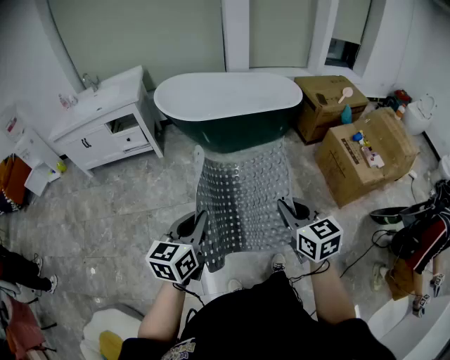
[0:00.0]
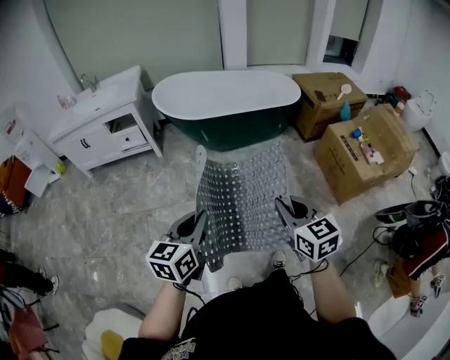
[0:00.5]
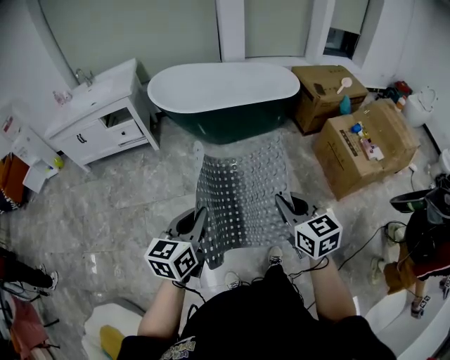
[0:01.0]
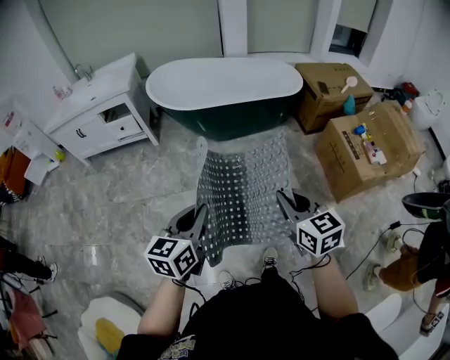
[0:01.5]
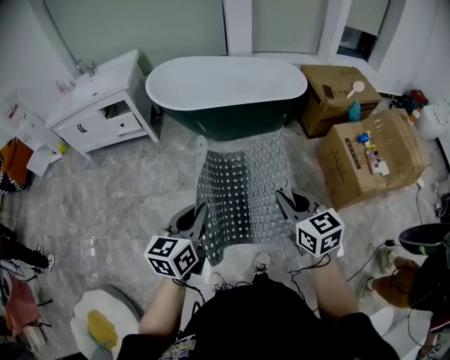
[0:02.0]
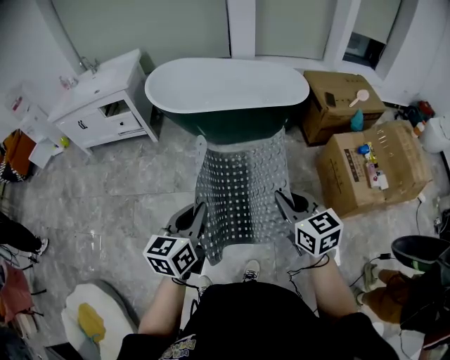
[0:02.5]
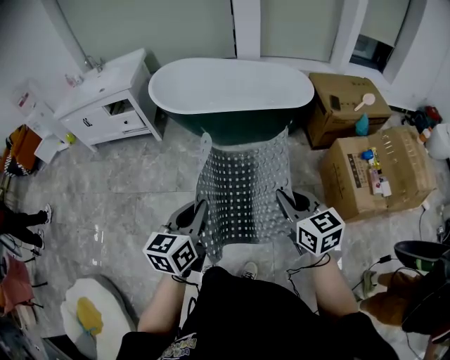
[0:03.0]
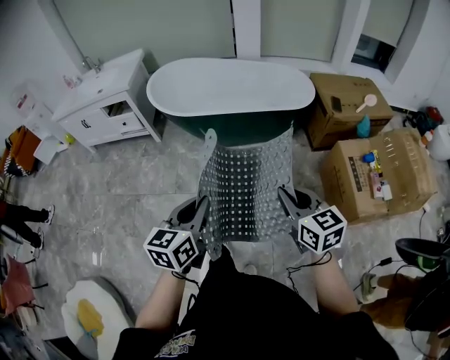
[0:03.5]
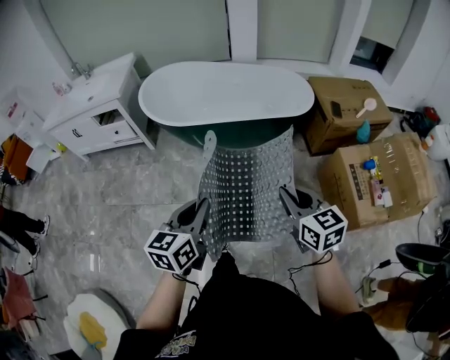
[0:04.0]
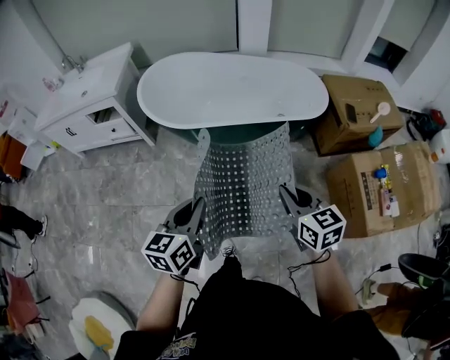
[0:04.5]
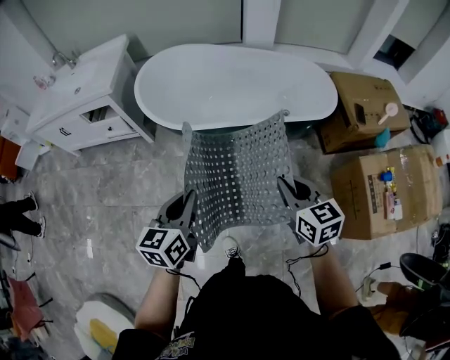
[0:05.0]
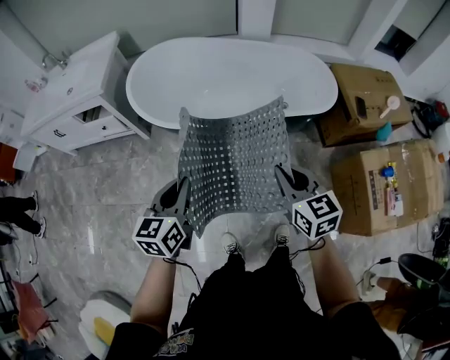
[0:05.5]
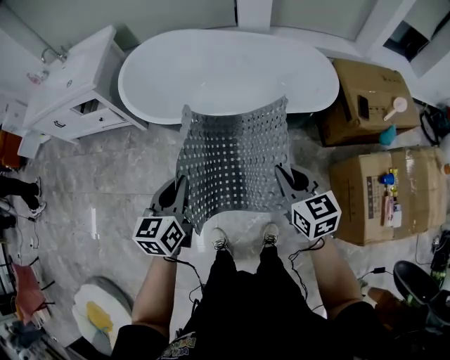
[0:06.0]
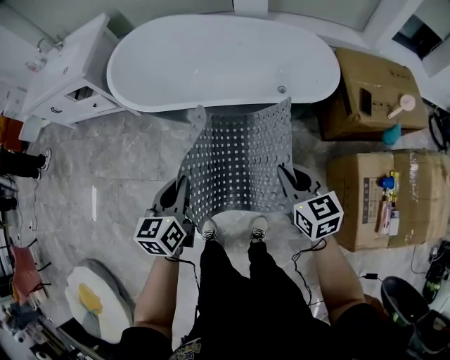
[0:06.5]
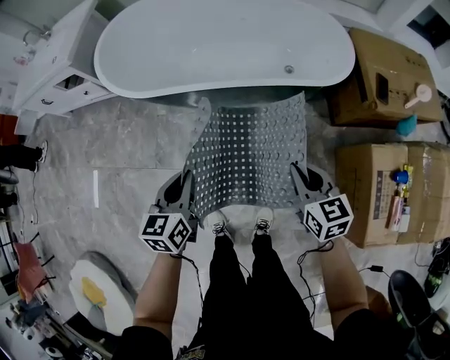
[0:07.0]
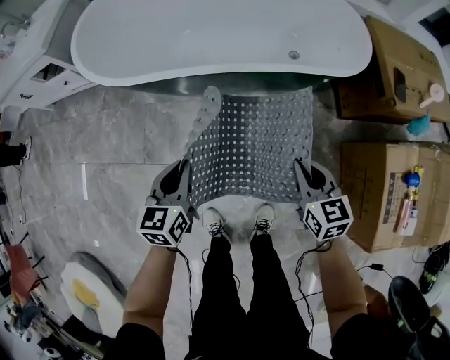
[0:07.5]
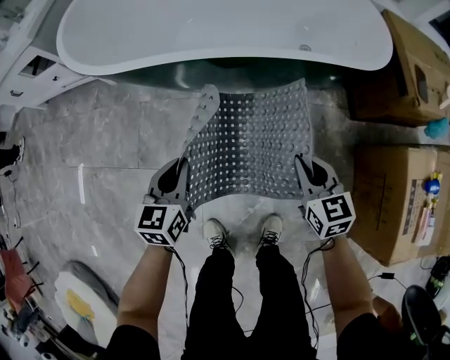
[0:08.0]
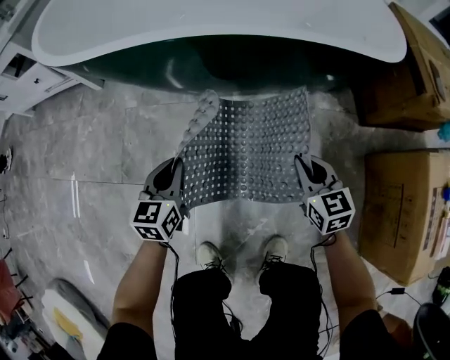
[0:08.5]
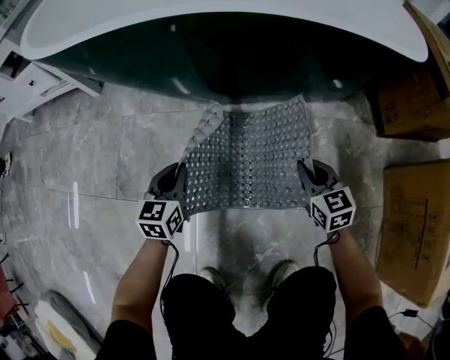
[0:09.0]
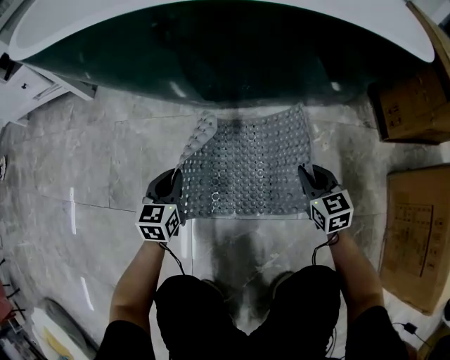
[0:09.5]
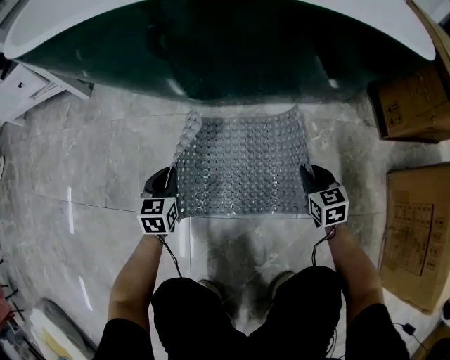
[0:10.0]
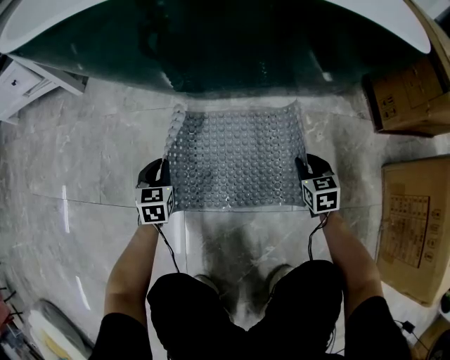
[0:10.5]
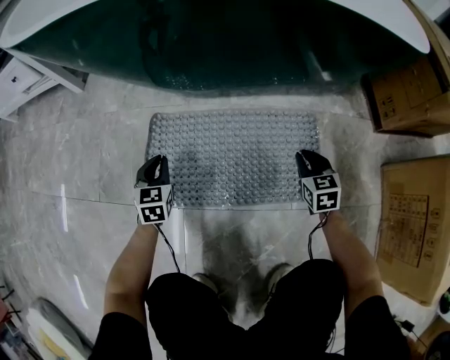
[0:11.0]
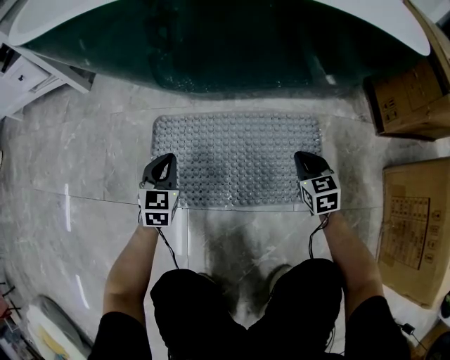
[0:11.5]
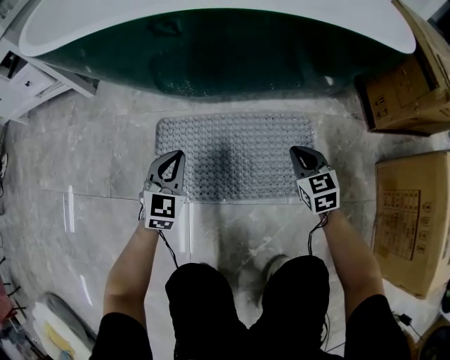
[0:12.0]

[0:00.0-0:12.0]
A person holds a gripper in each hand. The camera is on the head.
0:00.0 to 0:02.0: Both grippers move to the right and forward, about 15 cm.
0:02.0 to 0:04.0: Both grippers move forward and to the right, some 20 cm.
0:04.0 to 0:06.0: Both grippers travel together forward, some 30 cm.
0:06.0 to 0:08.0: The grippers both shift downward by approximately 40 cm.
0:08.0 to 0:10.0: Both grippers move downward, about 40 cm.
0:10.0 to 0:12.0: The left gripper moves upward and to the right, roughly 15 cm, and changes its angle by approximately 30 degrees. Meanwhile the right gripper goes roughly 10 cm upward.

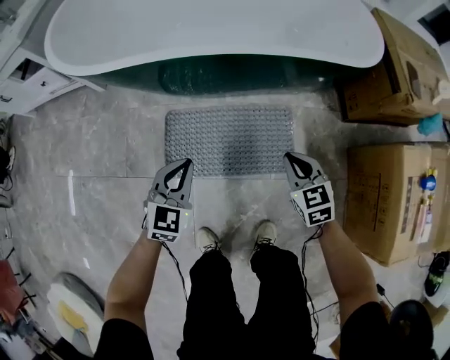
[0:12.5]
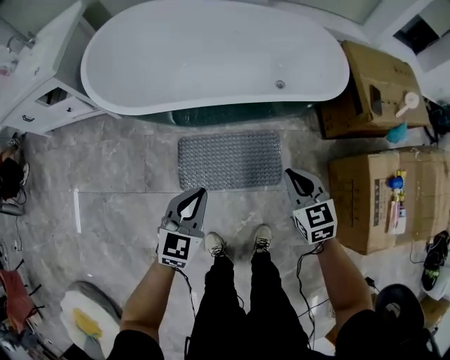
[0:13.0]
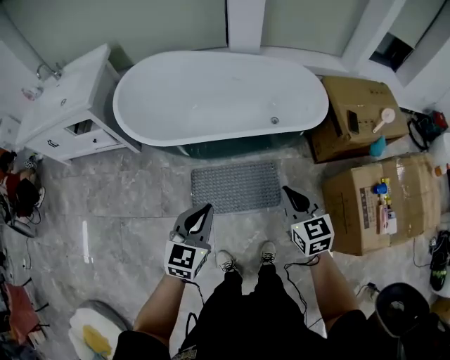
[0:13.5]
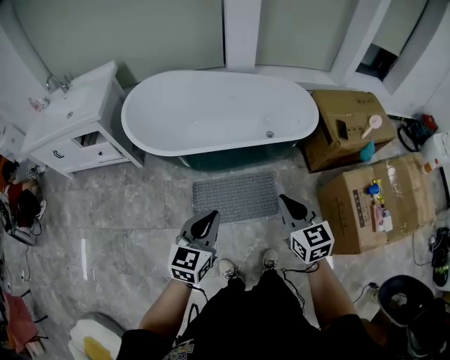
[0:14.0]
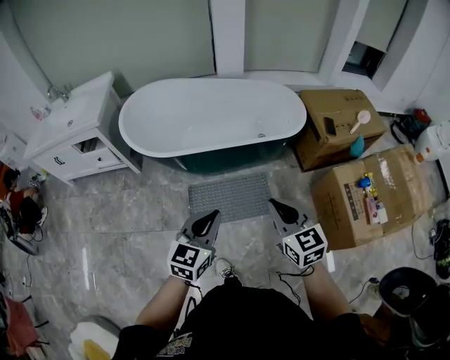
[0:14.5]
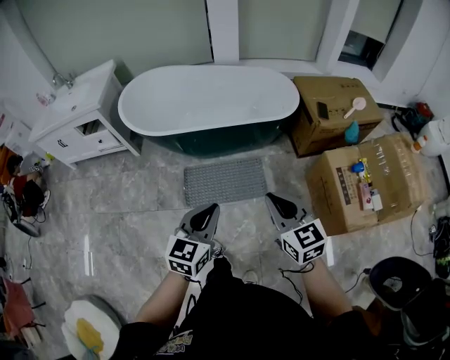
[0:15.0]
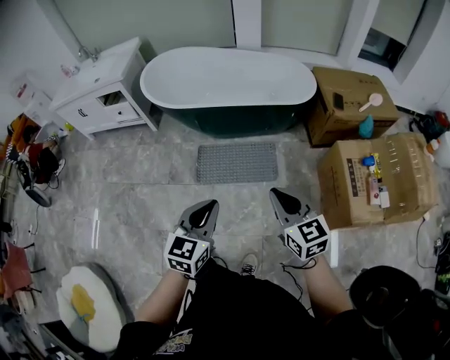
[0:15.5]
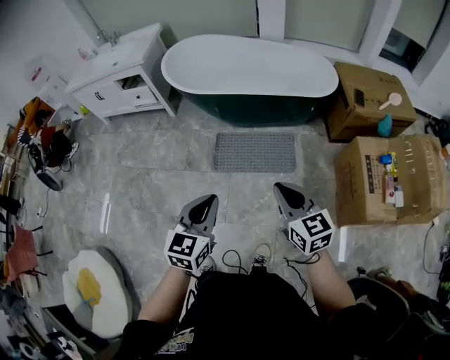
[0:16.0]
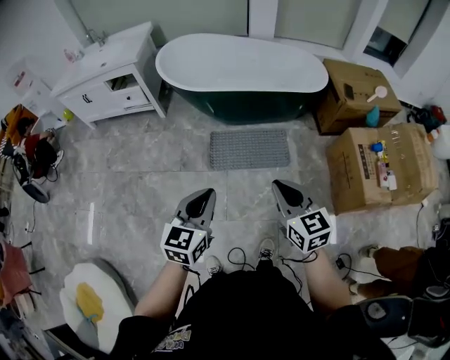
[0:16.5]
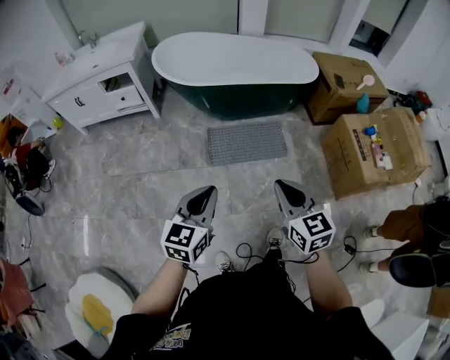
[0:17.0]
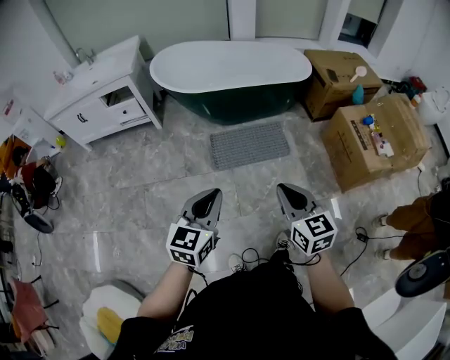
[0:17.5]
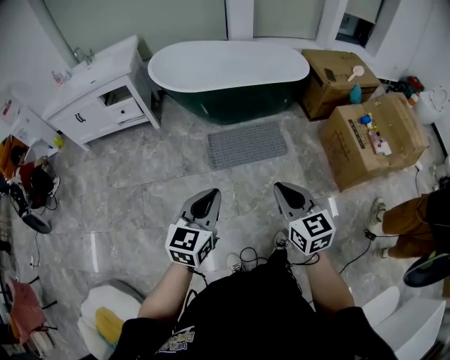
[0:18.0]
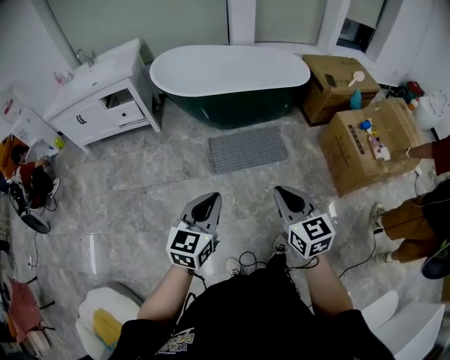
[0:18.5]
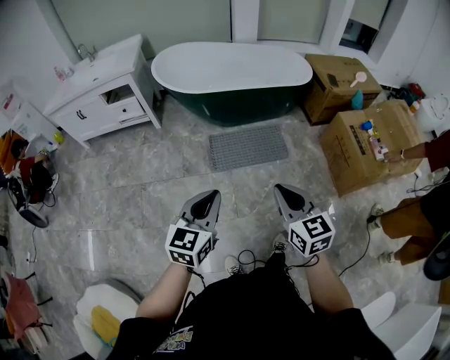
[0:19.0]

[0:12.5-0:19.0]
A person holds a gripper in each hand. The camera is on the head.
0:12.5 to 0:14.5: The two grippers go some 60 cm upward and backward. The right gripper turns by approximately 20 degrees, while the left gripper changes its angle by some 20 degrees.
0:14.5 to 0:17.0: The grippers both shift backward and to the left by some 35 cm.
0:17.0 to 0:19.0: There are only small adjustments of the grippers.

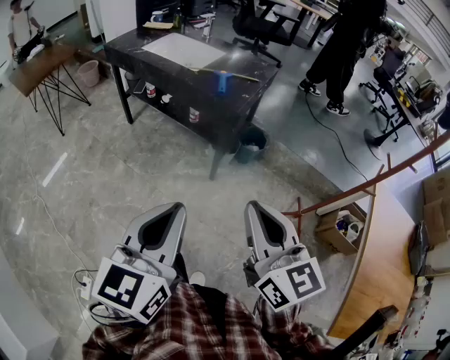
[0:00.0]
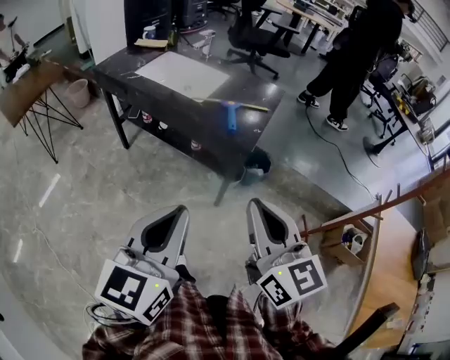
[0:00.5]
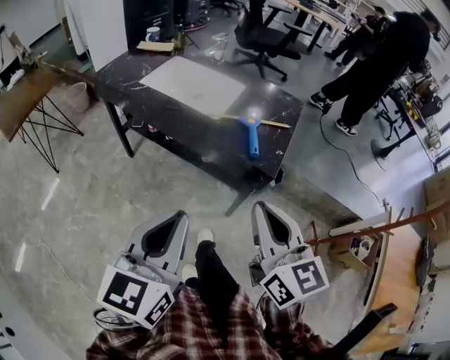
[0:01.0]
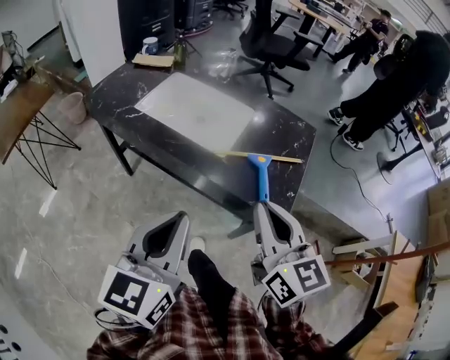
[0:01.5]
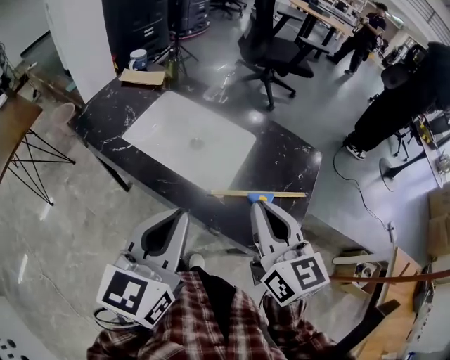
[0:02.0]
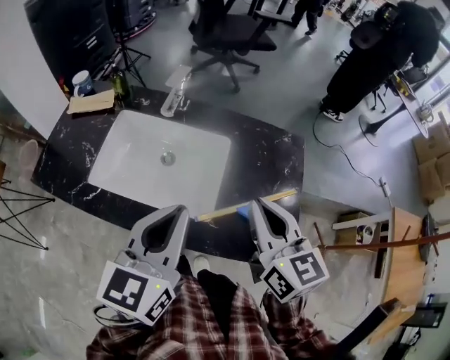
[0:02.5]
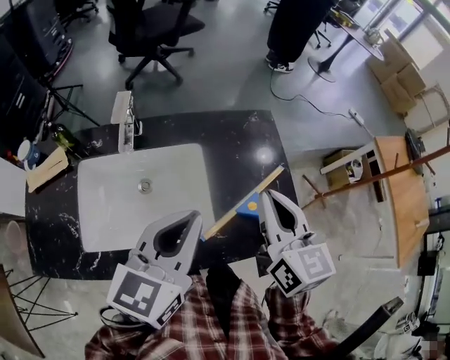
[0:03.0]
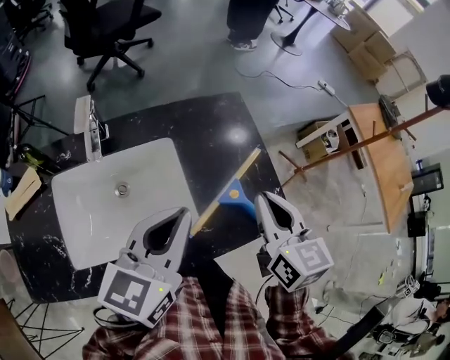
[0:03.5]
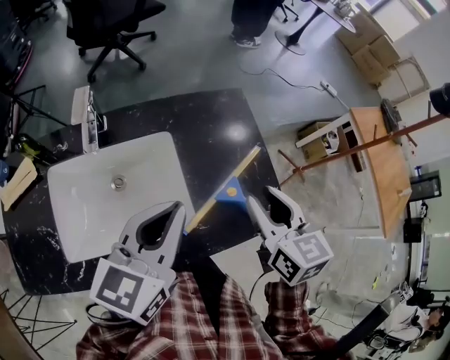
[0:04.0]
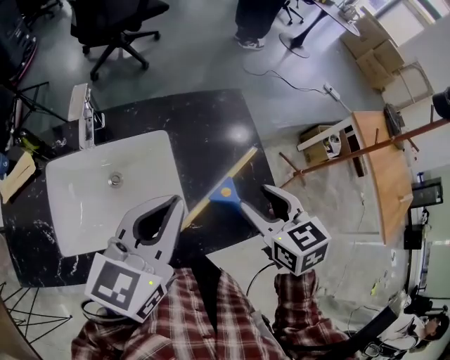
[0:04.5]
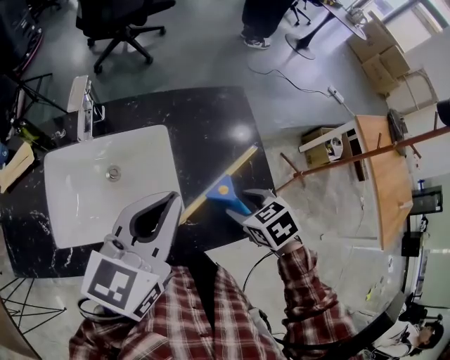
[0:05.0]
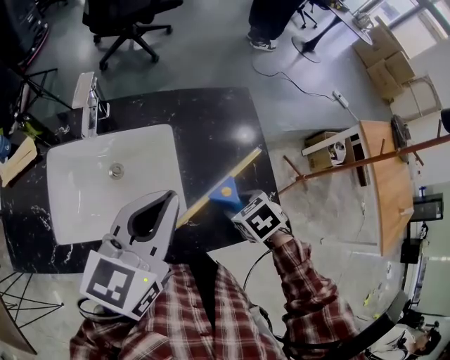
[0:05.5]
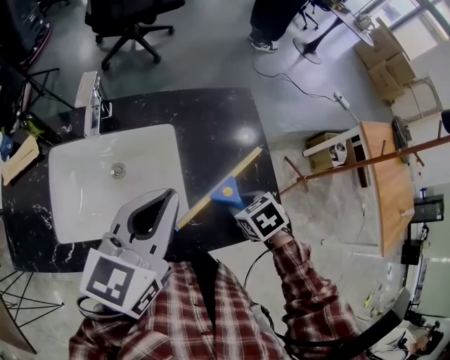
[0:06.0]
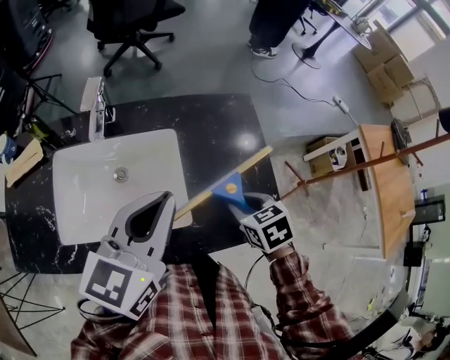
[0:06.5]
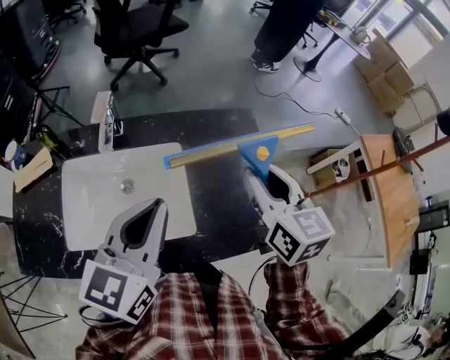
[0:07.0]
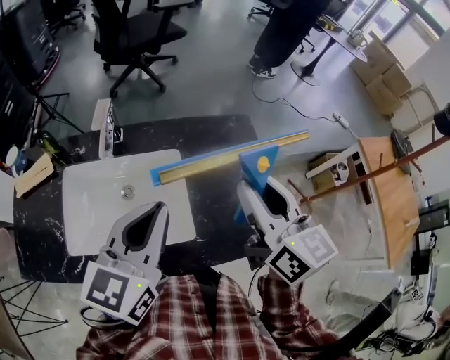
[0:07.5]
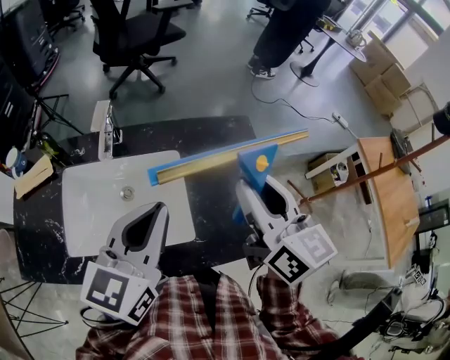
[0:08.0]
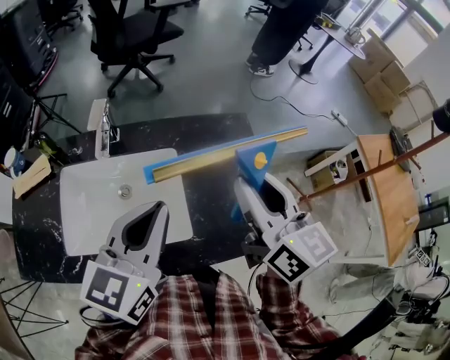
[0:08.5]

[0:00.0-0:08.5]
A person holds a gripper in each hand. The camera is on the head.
0:00.0 to 0:02.0: The pair of grippers is taken forward, approximately 60 cm.
0:02.0 to 0:04.0: The right gripper shifts by some 15 cm, rotates approximately 50 degrees, and opens its fingers. Meanwhile the left gripper ends up roughly 20 cm from where it was, and swivels approximately 50 degrees.
0:04.0 to 0:06.5: The right gripper is displaced downward by roughly 15 cm, and angles its fingers downward, by some 30 degrees.
0:06.5 to 0:08.5: The right gripper travels upward by about 25 cm, and tilts its fingers about 50 degrees upward.
